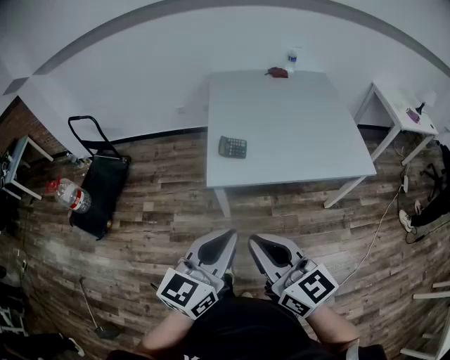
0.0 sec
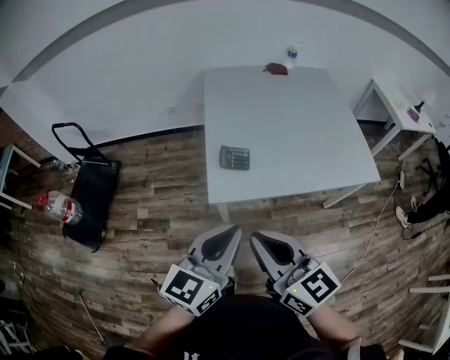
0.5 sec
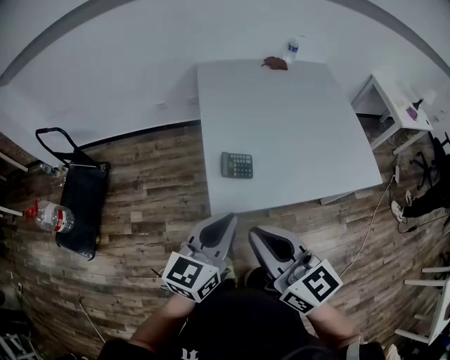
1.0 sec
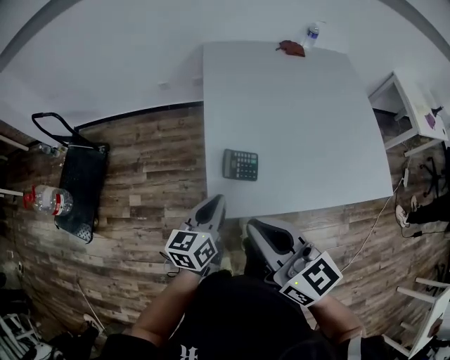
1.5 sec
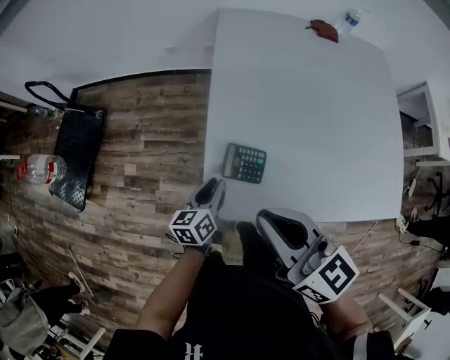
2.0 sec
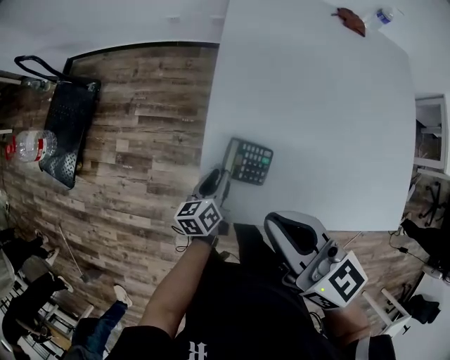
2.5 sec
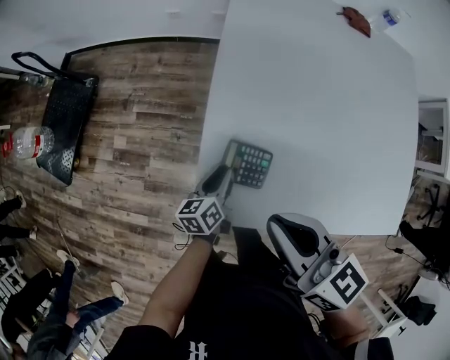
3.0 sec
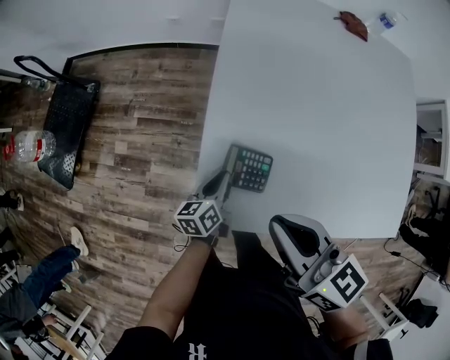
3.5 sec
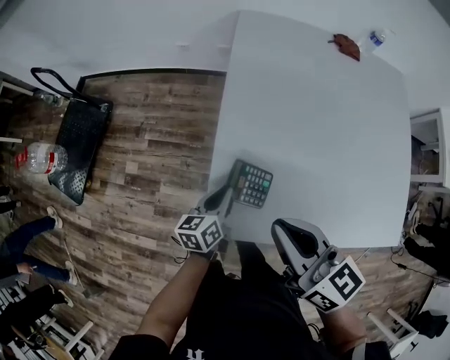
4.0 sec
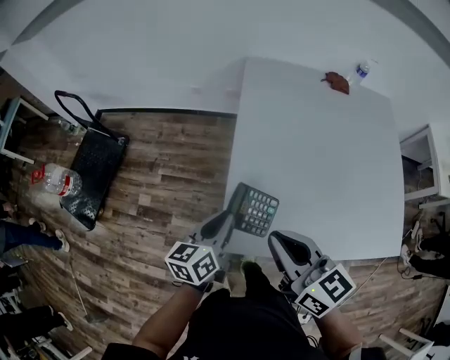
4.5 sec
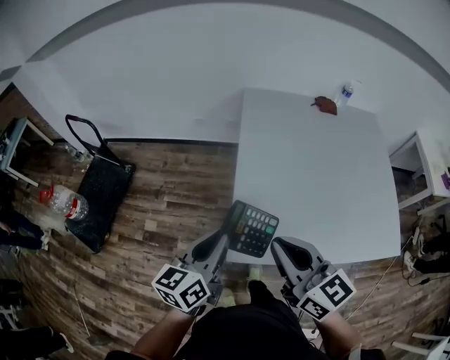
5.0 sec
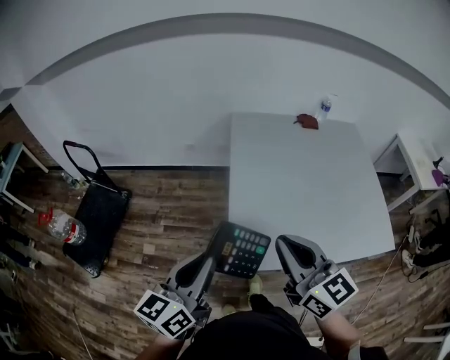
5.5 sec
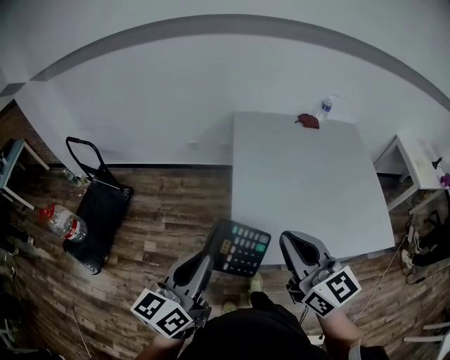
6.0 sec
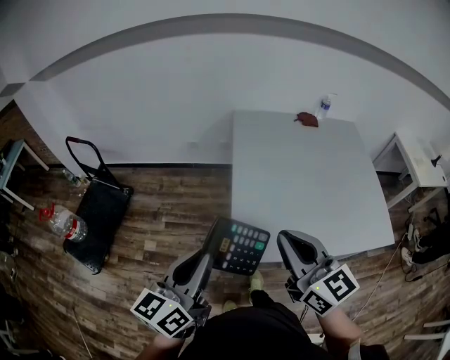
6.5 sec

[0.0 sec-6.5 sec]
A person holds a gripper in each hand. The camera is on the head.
0.0 sec to 2.0 sec: The right gripper moves forward, about 40 cm, while the left gripper is displaced forward and downward by some 50 cm, and rotates approximately 40 degrees.
2.0 sec to 4.5 sec: The left gripper moves upward, roughly 10 cm.
4.5 sec to 6.5 sec: The right gripper goes approximately 15 cm upward and backward, and changes its angle by about 20 degrees; the left gripper travels upward, backward and to the left by approximately 25 cm, and turns by about 20 degrees.

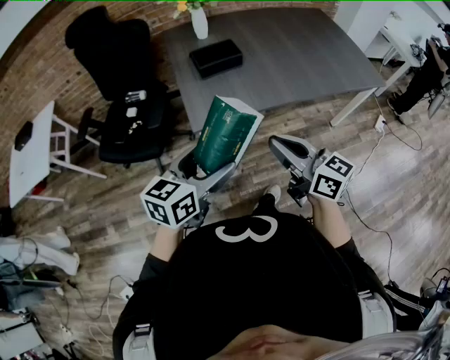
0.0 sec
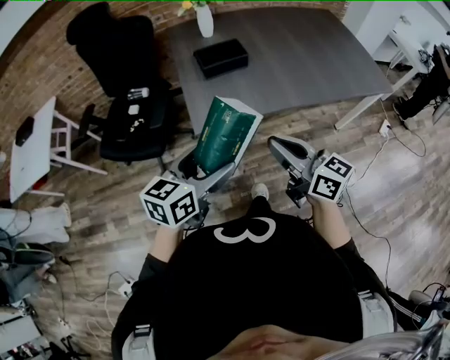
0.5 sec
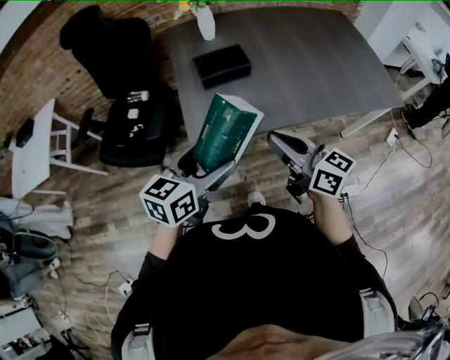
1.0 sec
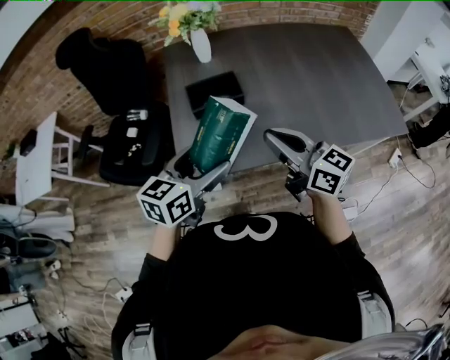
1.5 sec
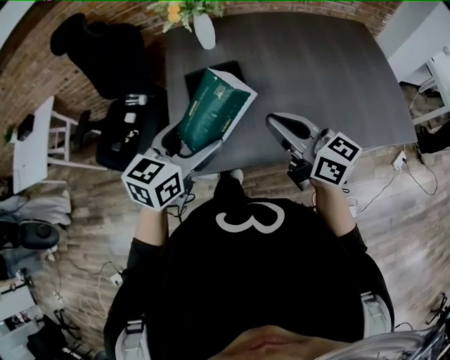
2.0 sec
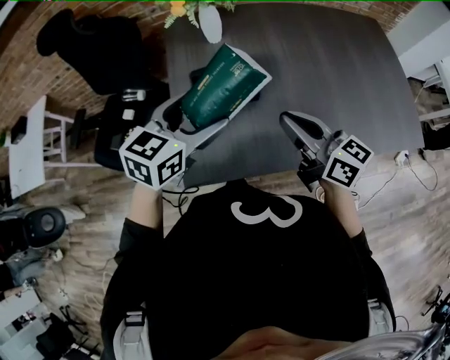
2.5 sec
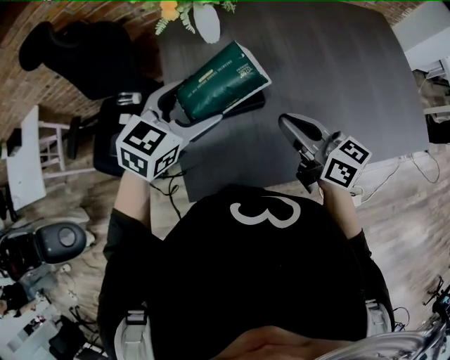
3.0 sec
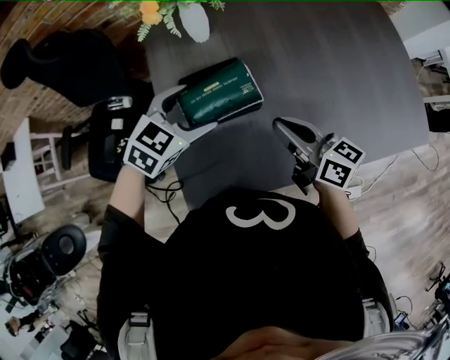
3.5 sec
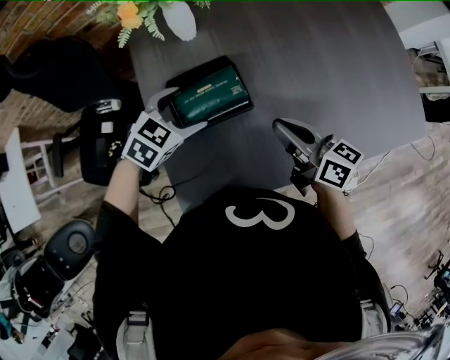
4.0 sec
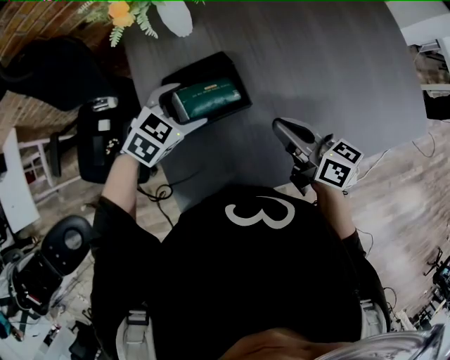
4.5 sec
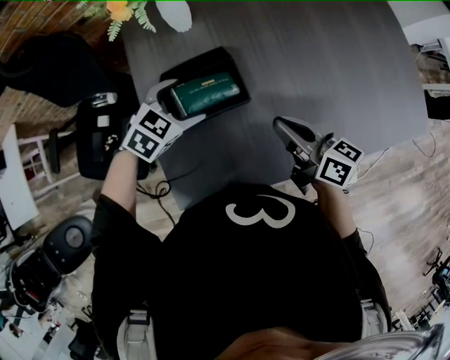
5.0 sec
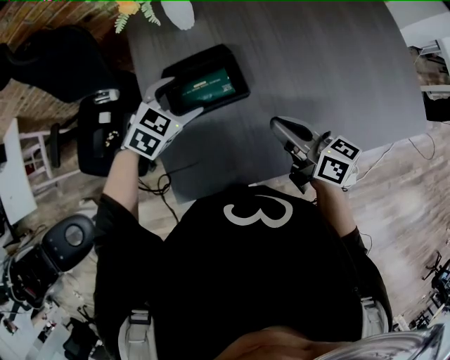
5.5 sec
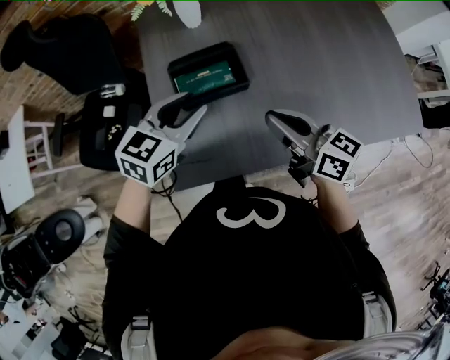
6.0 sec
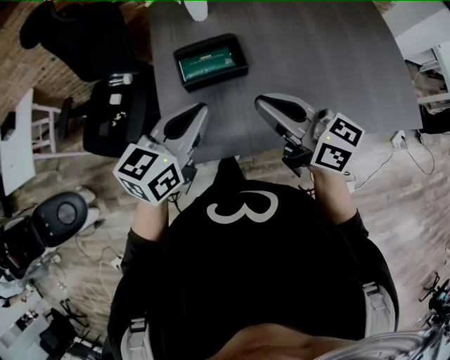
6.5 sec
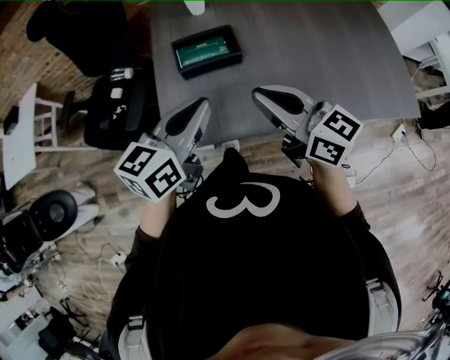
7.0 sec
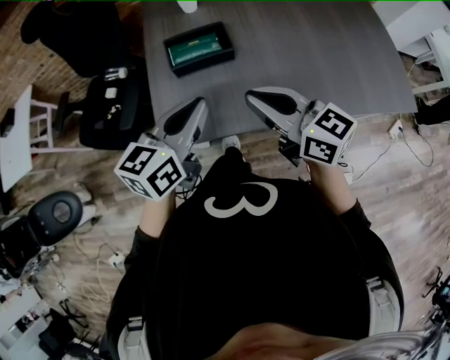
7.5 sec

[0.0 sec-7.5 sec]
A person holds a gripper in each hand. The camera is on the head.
0.0 sec to 2.0 sec: Both grippers travel together forward, approximately 25 cm.
2.0 sec to 4.0 sec: The right gripper travels forward and downward by some 15 cm, and swivels roughly 20 degrees. The left gripper shifts about 25 cm forward and downward, and turns by roughly 40 degrees.
4.0 sec to 5.5 sec: The grippers move only a little.
5.5 sec to 7.5 sec: The right gripper goes about 15 cm backward and upward, and turns by some 30 degrees. Meanwhile the left gripper is displaced backward and upward by roughly 25 cm, angles its fingers upward, by roughly 30 degrees, and closes up.

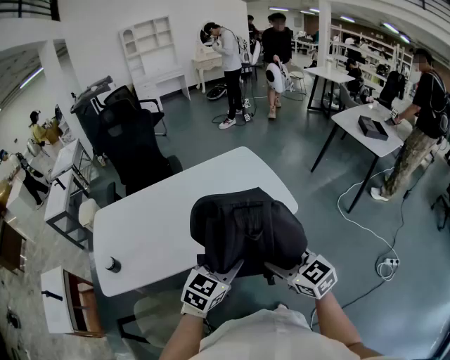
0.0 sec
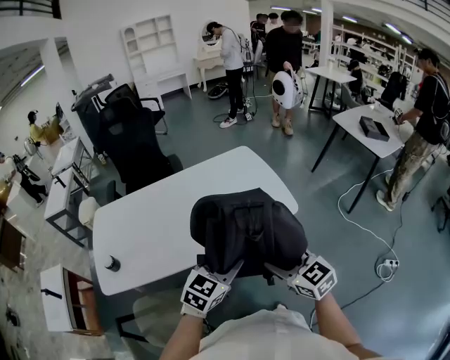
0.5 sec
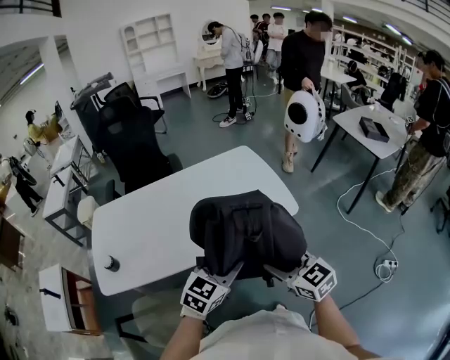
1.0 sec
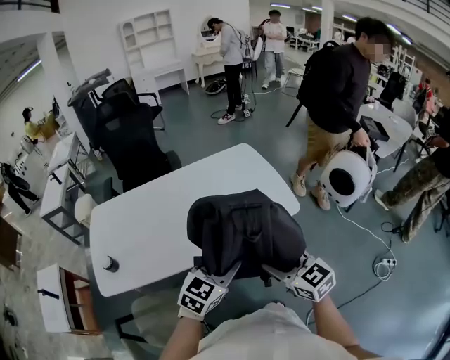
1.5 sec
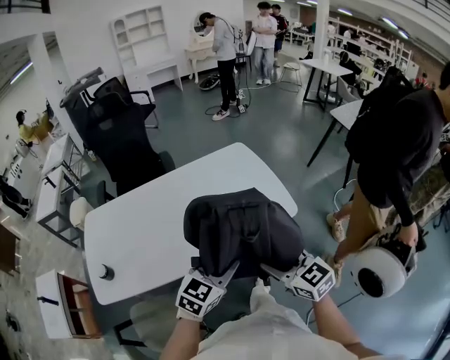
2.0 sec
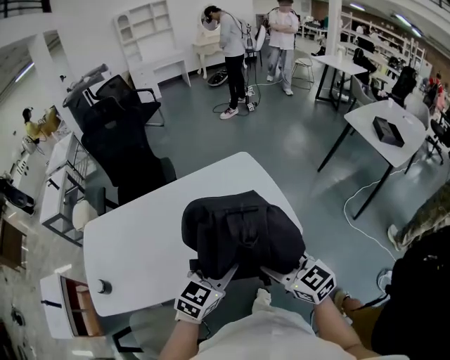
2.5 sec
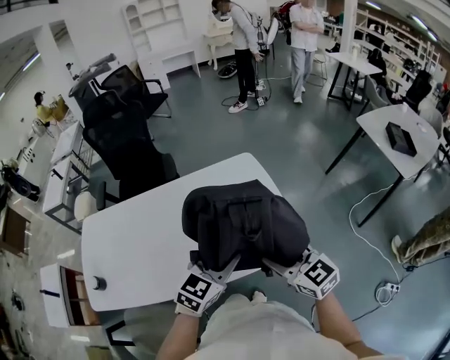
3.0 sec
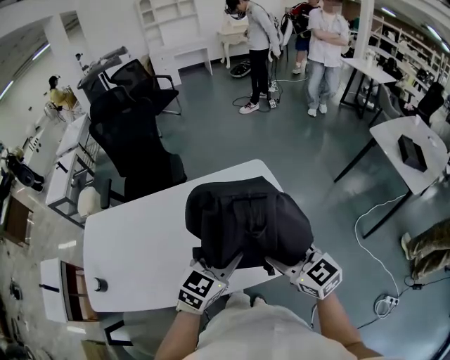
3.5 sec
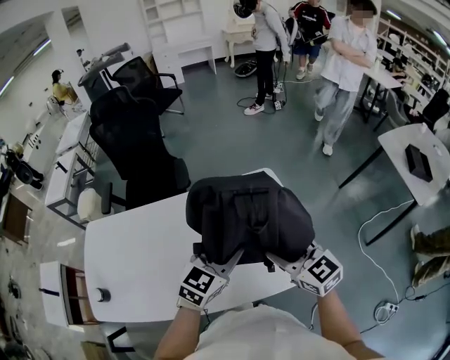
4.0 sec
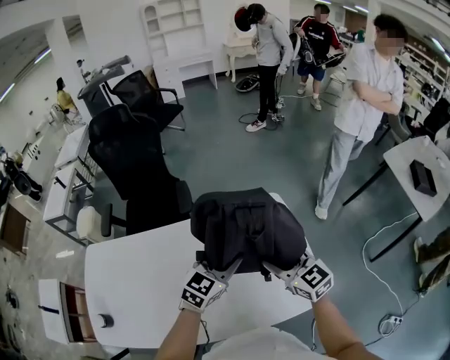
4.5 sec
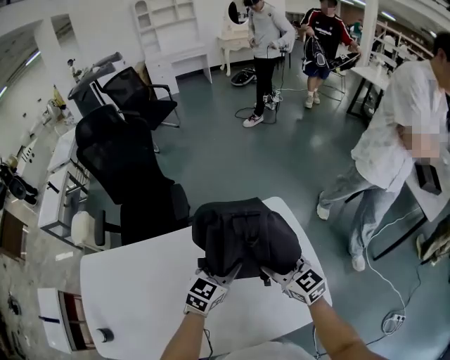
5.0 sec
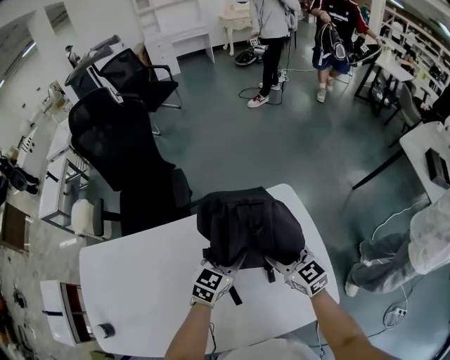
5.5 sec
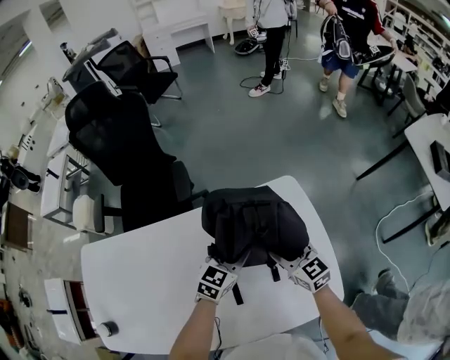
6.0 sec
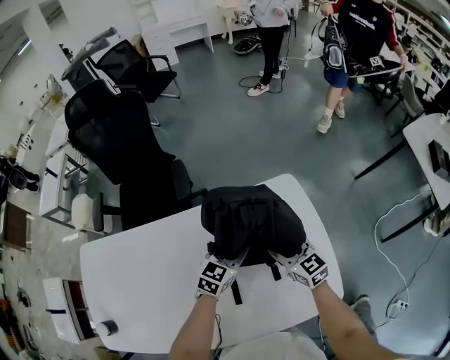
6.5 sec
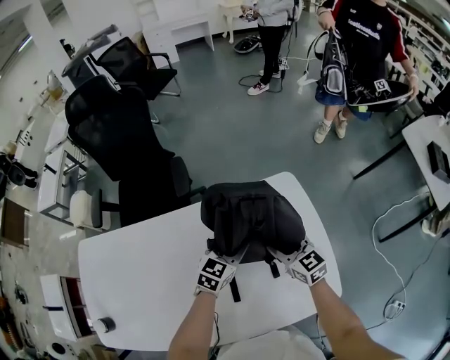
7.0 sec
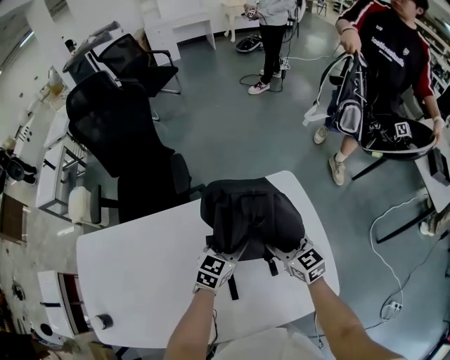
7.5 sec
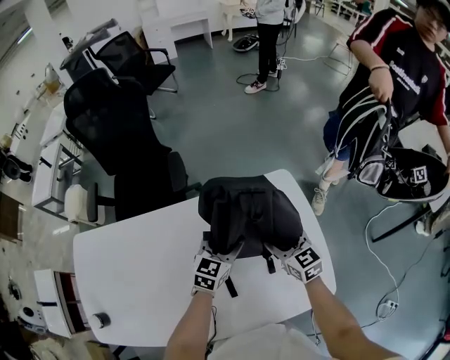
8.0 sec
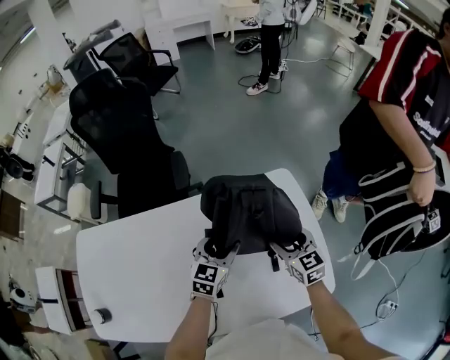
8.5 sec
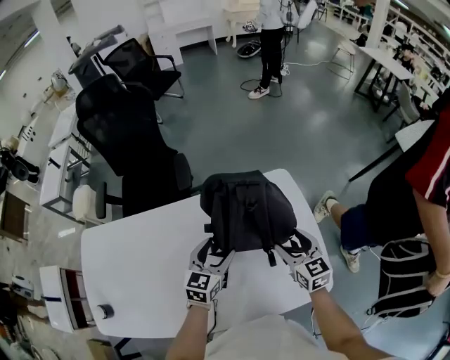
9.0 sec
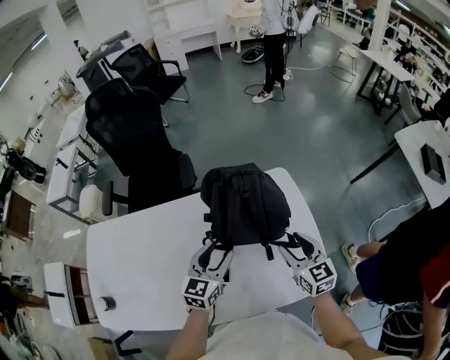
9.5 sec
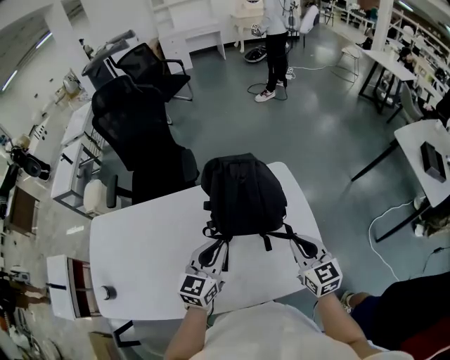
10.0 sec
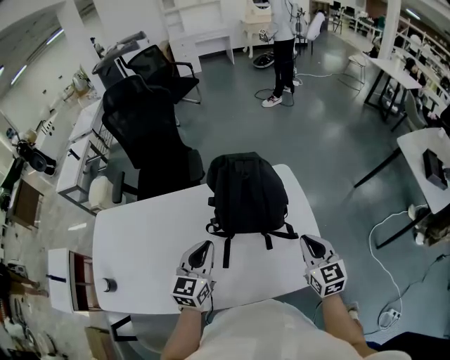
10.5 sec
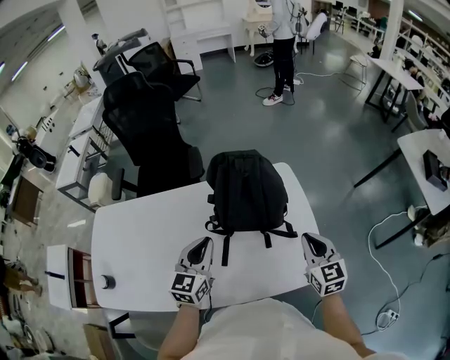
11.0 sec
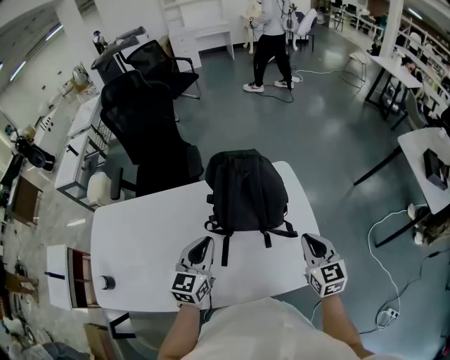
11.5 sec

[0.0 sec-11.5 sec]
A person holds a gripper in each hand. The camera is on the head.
0.0 sec to 2.0 sec: The grippers stay close to where they were, moving slightly.
2.0 sec to 4.0 sec: Both grippers travel together forward, roughly 30 cm.
4.0 sec to 6.0 sec: Both grippers move downward and forward, approximately 25 cm.
6.0 sec to 7.5 sec: The grippers make only small movements.
7.5 sec to 9.5 sec: The left gripper travels backward and upward by some 15 cm; the right gripper is displaced backward, upward and to the right by some 15 cm.
9.5 sec to 11.5 sec: The right gripper heads to the right, covering some 5 cm, and closes up, while the left gripper shifts by roughly 5 cm, and closes up.

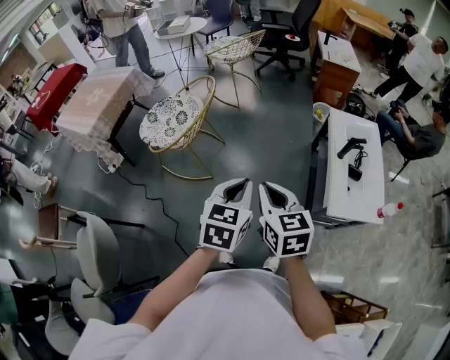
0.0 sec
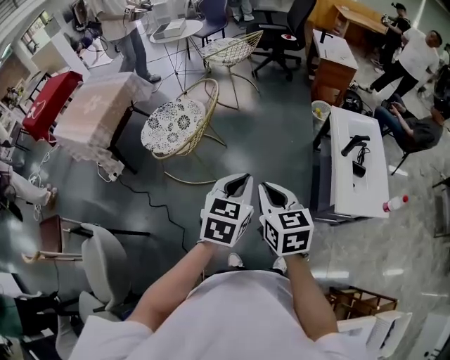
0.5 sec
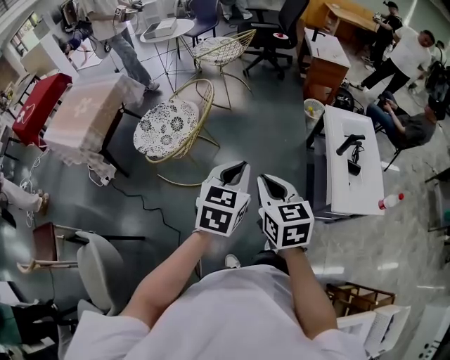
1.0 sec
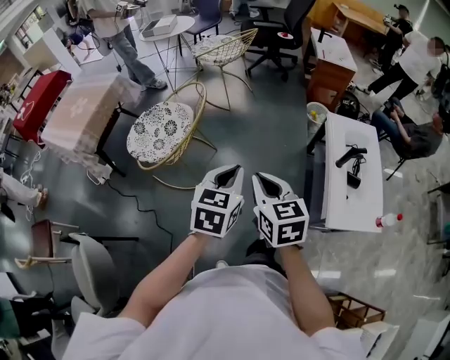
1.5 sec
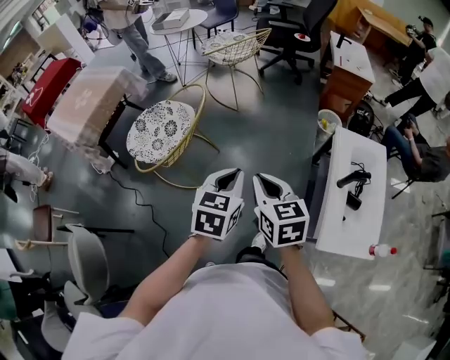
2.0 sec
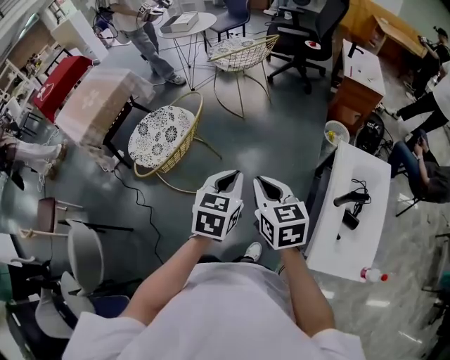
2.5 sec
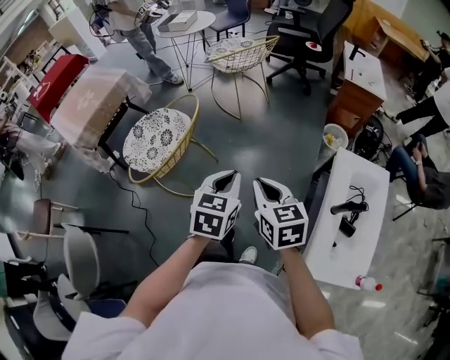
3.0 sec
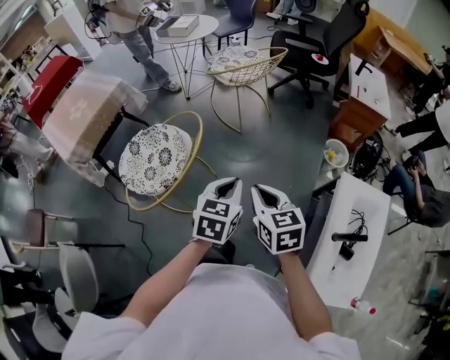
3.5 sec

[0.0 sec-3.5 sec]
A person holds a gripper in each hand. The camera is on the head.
0.0 sec to 2.0 sec: The two grippers go approximately 20 cm forward.
2.0 sec to 3.5 sec: Both grippers move forward, some 20 cm.
